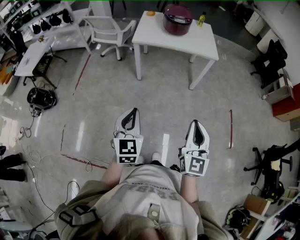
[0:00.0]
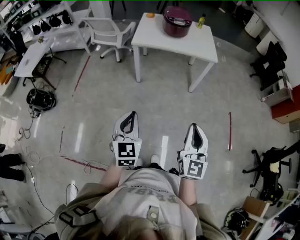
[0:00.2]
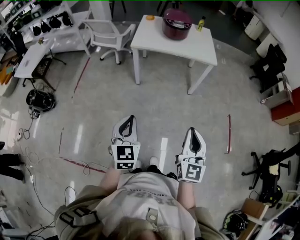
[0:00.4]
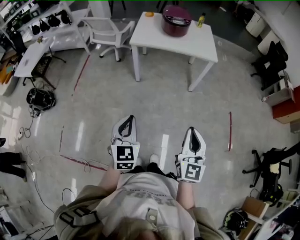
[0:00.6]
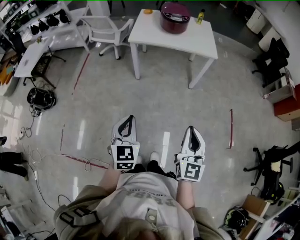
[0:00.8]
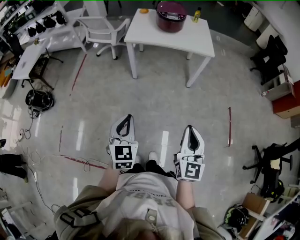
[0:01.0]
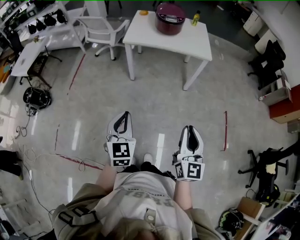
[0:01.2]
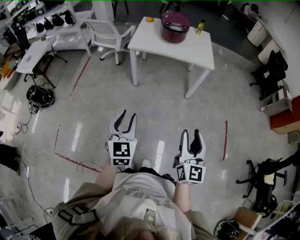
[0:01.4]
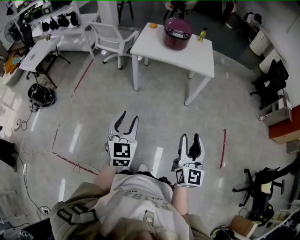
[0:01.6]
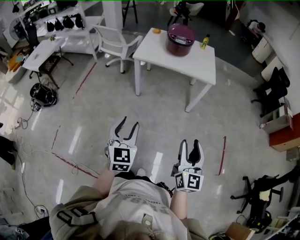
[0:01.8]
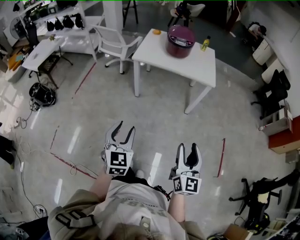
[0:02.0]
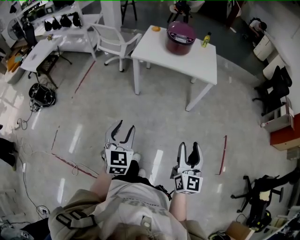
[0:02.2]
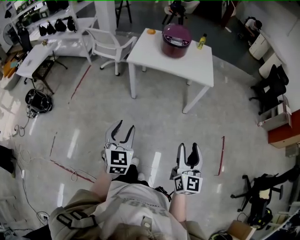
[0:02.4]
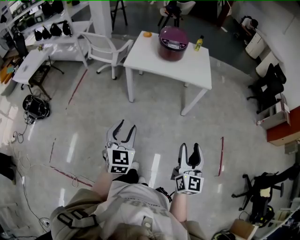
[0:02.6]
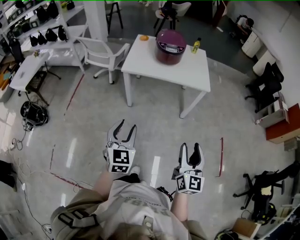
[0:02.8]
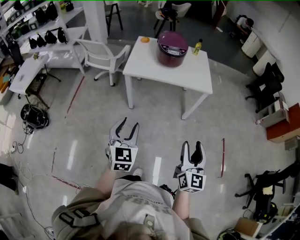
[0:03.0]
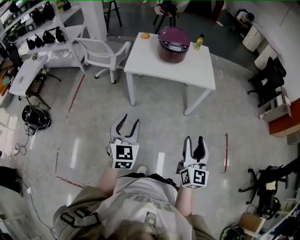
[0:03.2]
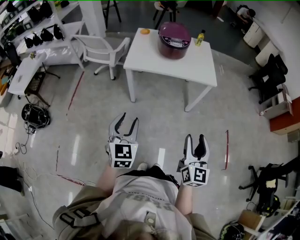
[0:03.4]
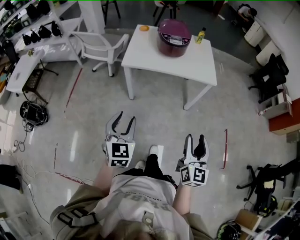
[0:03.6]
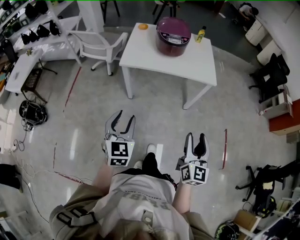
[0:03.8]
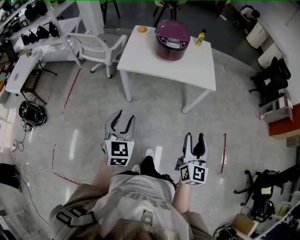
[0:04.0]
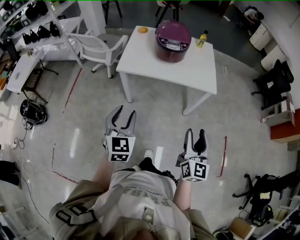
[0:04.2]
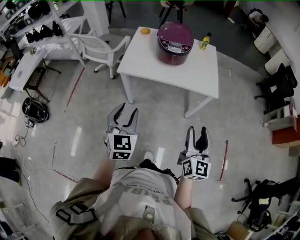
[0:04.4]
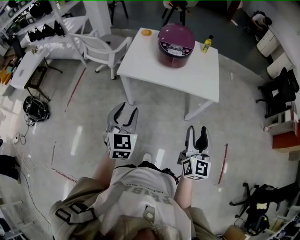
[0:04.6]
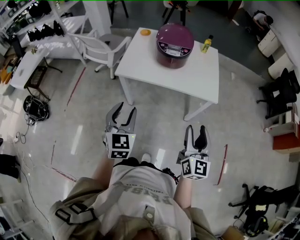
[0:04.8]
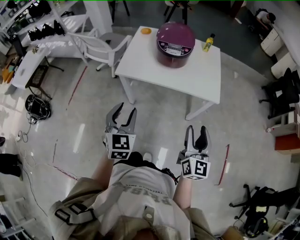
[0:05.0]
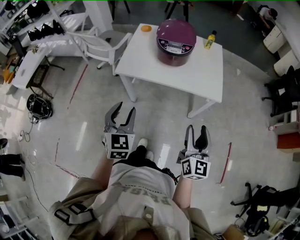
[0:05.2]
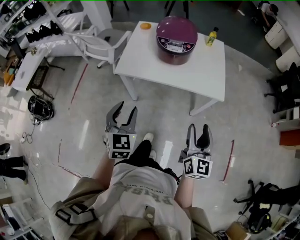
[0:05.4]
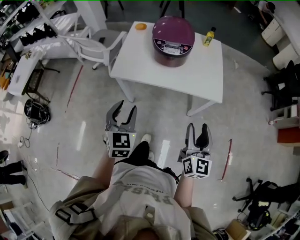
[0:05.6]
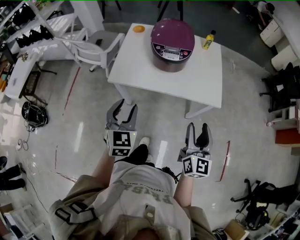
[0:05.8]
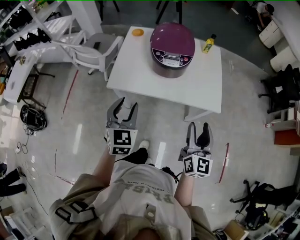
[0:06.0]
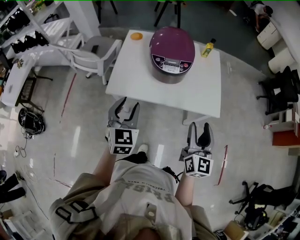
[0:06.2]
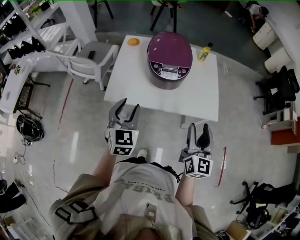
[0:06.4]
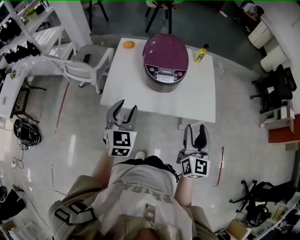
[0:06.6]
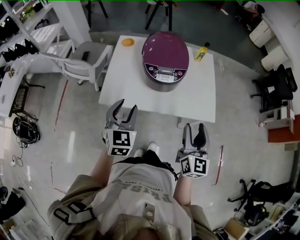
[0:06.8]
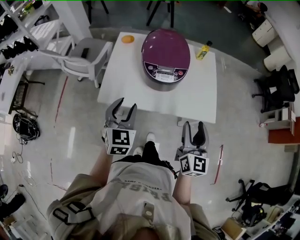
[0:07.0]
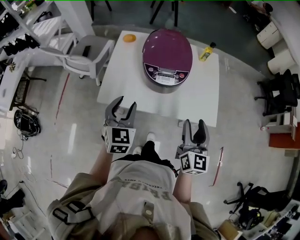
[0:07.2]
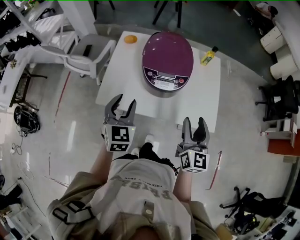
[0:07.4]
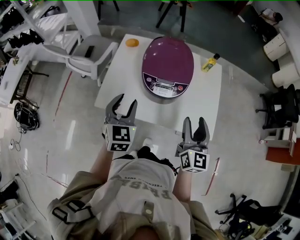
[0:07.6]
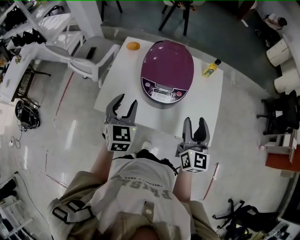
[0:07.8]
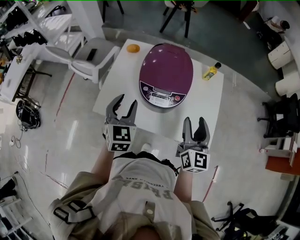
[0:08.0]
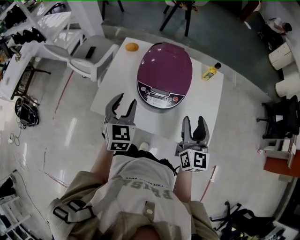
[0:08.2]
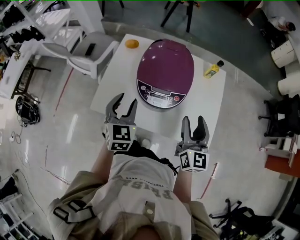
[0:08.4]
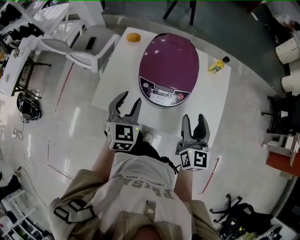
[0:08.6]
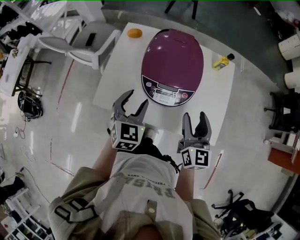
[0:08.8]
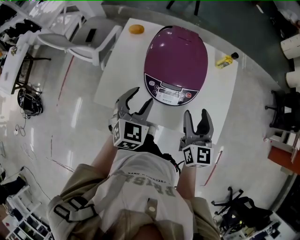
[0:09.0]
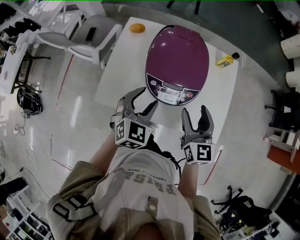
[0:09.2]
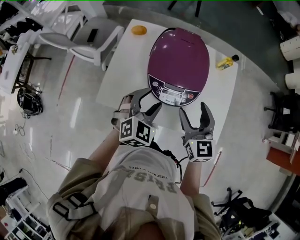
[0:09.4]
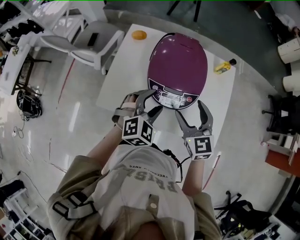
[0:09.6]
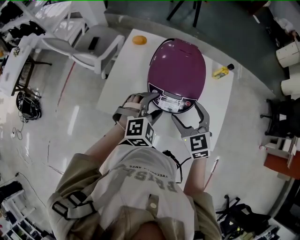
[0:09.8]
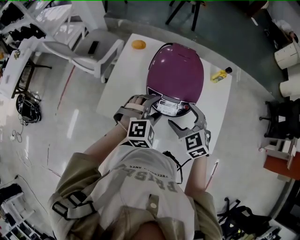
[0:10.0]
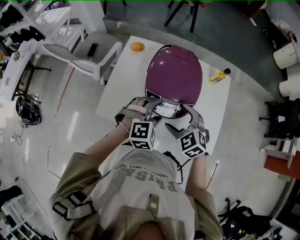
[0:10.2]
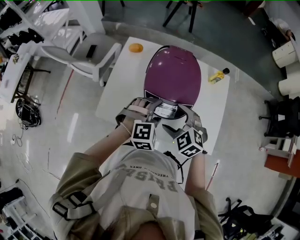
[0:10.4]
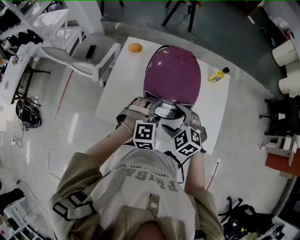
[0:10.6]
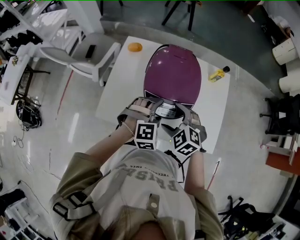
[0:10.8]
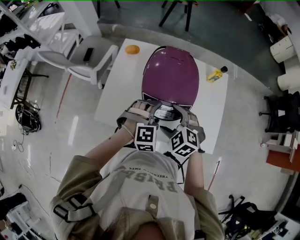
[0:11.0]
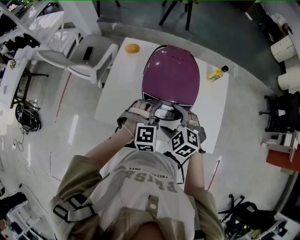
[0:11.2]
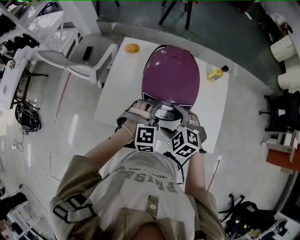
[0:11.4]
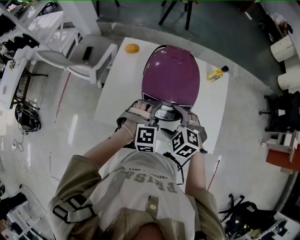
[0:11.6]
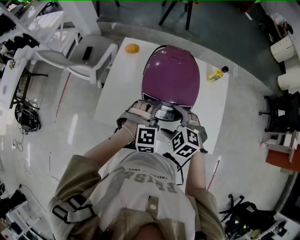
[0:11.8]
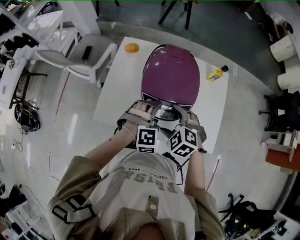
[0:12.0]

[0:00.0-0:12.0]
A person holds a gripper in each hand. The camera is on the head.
0:00.0 to 0:01.6: Both grippers move to the right, approximately 10 cm. The left gripper opens up.
0:01.6 to 0:03.0: The two grippers go about 15 cm forward.
0:03.0 to 0:04.4: The two grippers go roughly 20 cm forward.
0:04.4 to 0:06.0: Both grippers travel together forward, roughly 20 cm.
0:06.0 to 0:07.6: Both grippers move forward, roughly 20 cm.
0:07.6 to 0:09.0: The right gripper goes some 10 cm forward. The left gripper heads forward and to the right, covering some 10 cm.
0:09.0 to 0:10.4: The right gripper moves to the left and downward, approximately 10 cm, and points its fingers roughly 40 degrees further downward. Meanwhile the left gripper is displaced to the right by approximately 10 cm, and rolls clockwise, seen from behind, by approximately 40 degrees.
0:10.4 to 0:12.0: The grippers make only small movements.

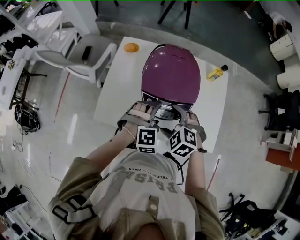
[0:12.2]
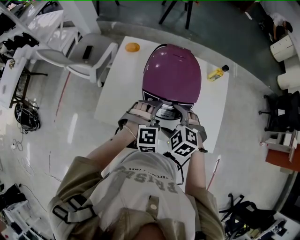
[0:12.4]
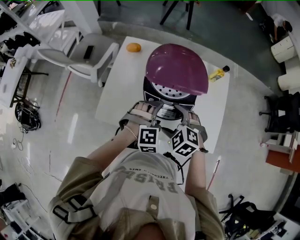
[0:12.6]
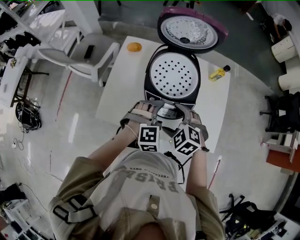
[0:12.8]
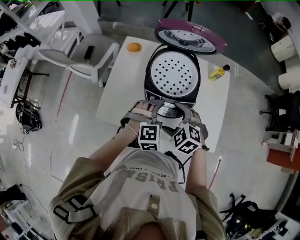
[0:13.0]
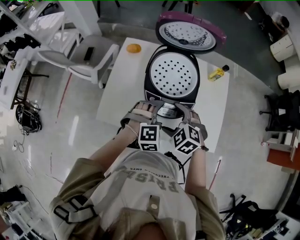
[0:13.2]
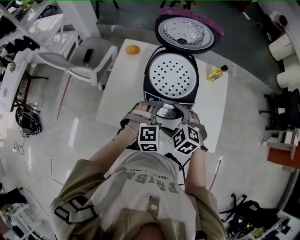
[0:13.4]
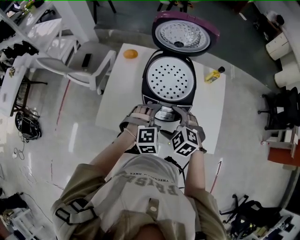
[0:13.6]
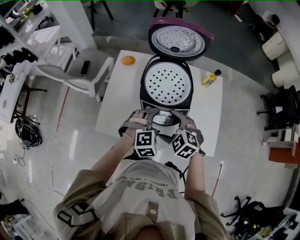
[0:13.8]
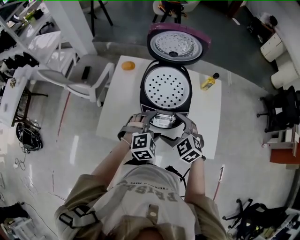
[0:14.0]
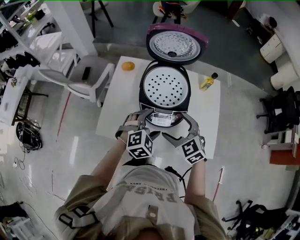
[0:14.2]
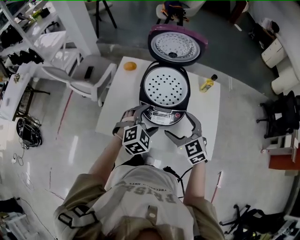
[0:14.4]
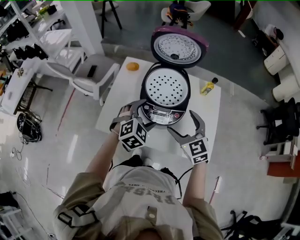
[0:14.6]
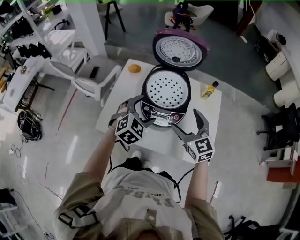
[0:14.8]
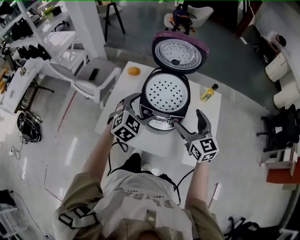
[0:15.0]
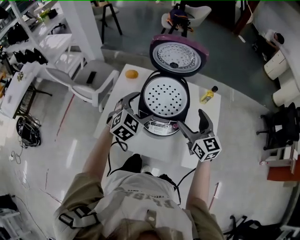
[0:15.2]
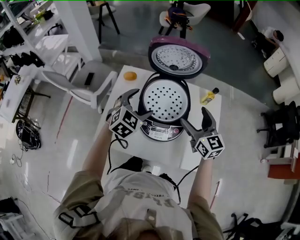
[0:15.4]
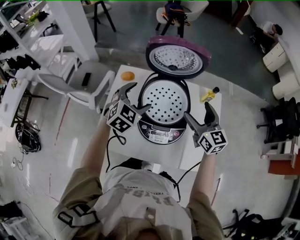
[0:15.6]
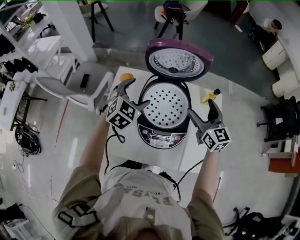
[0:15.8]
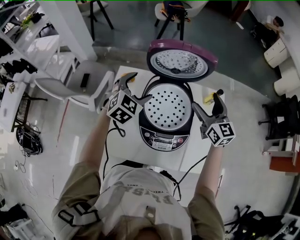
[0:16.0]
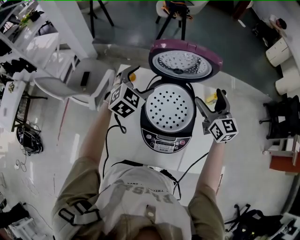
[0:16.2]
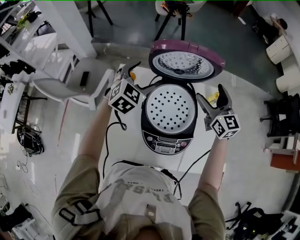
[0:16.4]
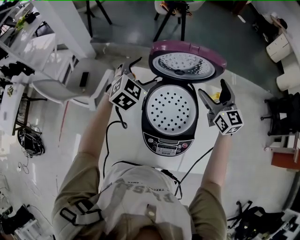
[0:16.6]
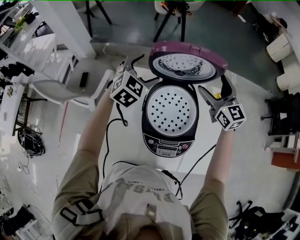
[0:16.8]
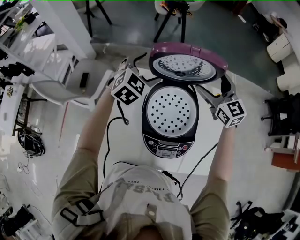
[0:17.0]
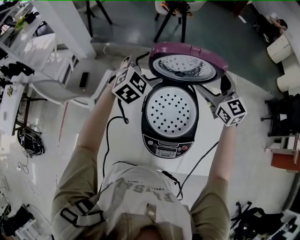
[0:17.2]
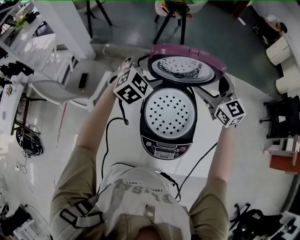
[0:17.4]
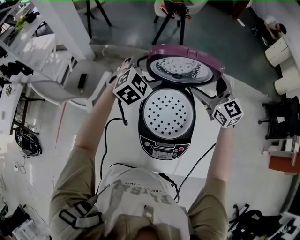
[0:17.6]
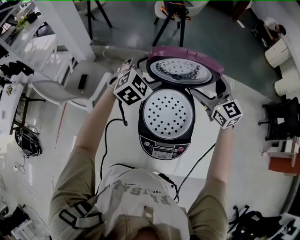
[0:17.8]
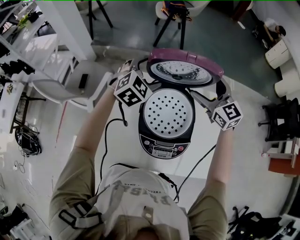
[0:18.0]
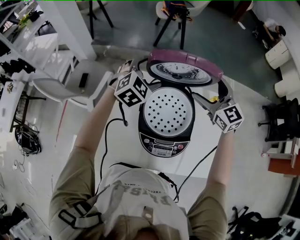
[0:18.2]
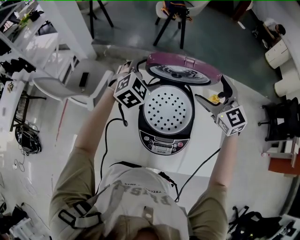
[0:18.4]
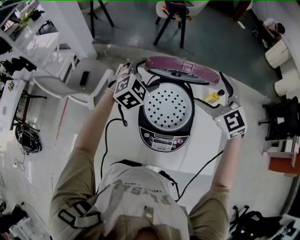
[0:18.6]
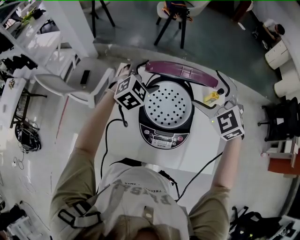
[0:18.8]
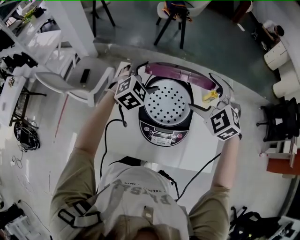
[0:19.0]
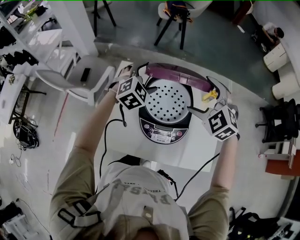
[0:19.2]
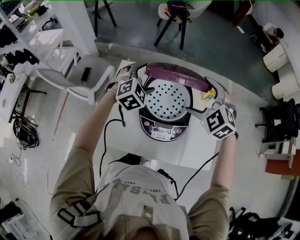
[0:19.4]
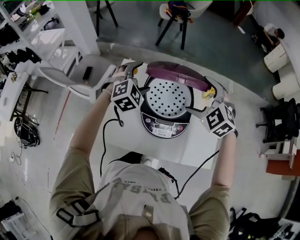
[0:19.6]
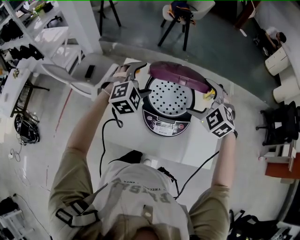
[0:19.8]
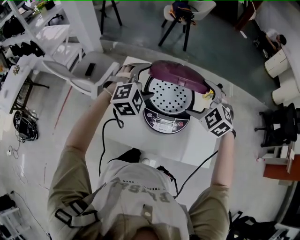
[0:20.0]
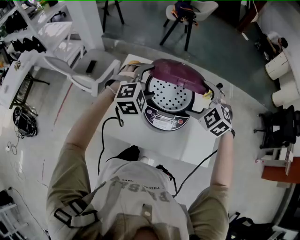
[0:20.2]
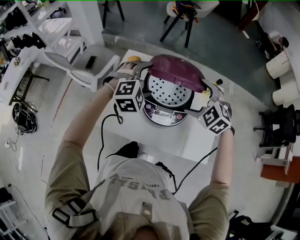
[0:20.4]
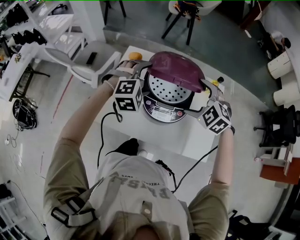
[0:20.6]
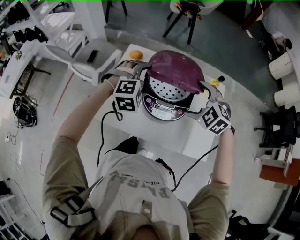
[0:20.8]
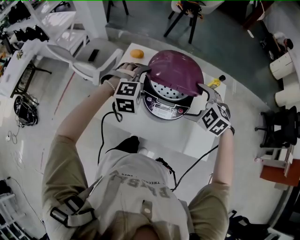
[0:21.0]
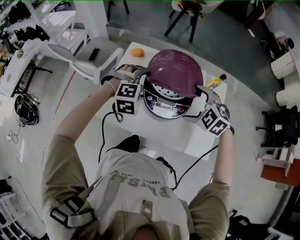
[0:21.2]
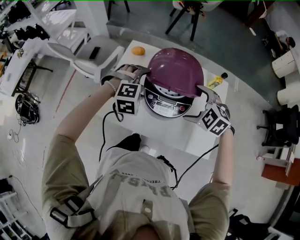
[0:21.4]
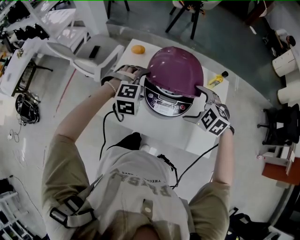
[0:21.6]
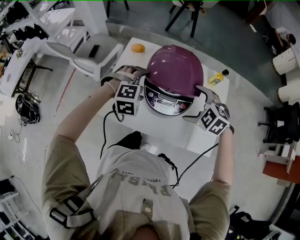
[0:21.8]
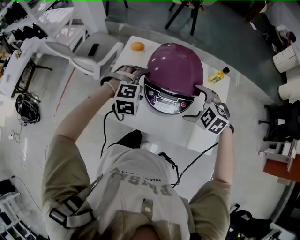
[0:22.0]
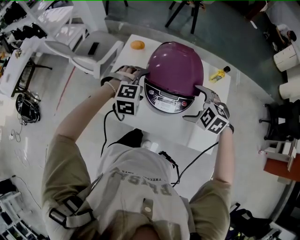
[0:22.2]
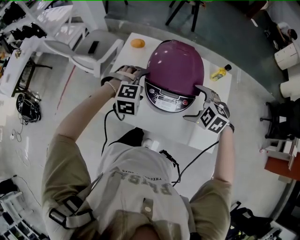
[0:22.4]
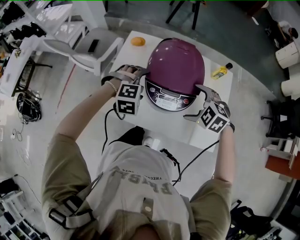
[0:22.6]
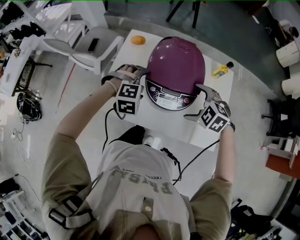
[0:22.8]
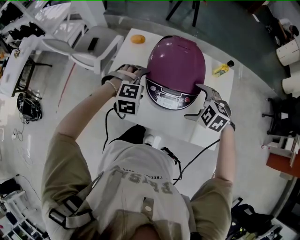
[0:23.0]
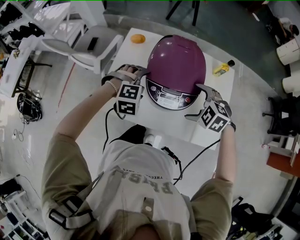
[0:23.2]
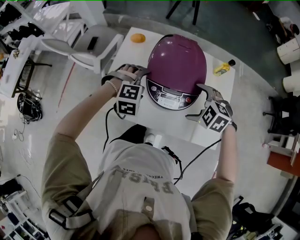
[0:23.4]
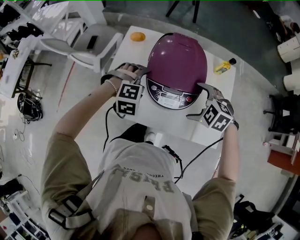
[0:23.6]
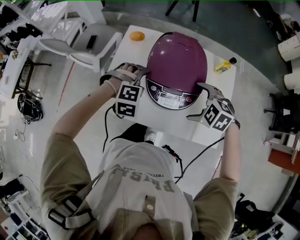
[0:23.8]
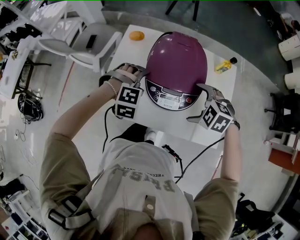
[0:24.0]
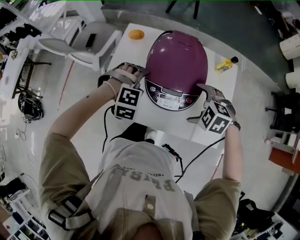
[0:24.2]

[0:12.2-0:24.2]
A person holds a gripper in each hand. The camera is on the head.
0:12.2 to 0:13.8: There are only small adjustments of the grippers.
0:13.8 to 0:15.2: The left gripper goes roughly 15 cm upward, forward and to the left, and rotates some 30 degrees. Meanwhile the right gripper moves upward, to the right and forward, roughly 20 cm, and points its fingers approximately 40 degrees further upward.
0:15.2 to 0:16.6: The grippers both shift forward by some 20 cm.
0:16.6 to 0:18.2: The grippers move only a little.
0:18.2 to 0:19.8: The grippers both shift backward by approximately 15 cm. The right gripper angles its fingers downward, by roughly 30 degrees.
0:19.8 to 0:21.2: Both grippers travel together backward and downward, about 10 cm. The left gripper swivels about 20 degrees.
0:21.2 to 0:22.6: The left gripper heads downward, covering some 5 cm. Meanwhile the right gripper ends up approximately 5 cm from where it was.
0:22.6 to 0:24.2: There are only small adjustments of the grippers.
